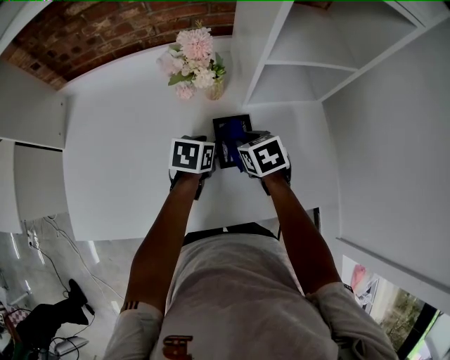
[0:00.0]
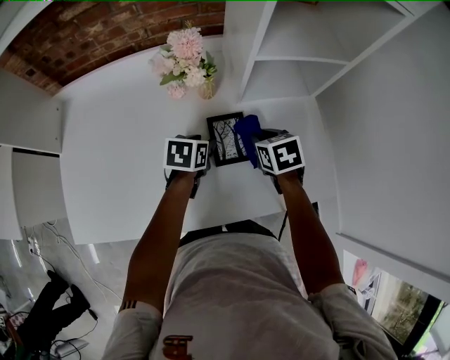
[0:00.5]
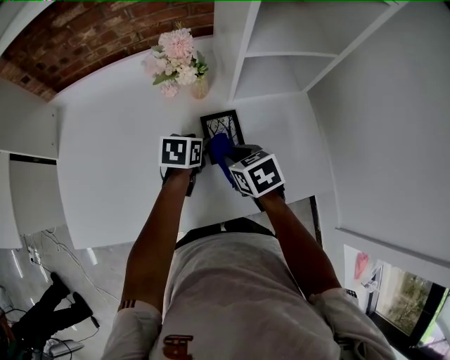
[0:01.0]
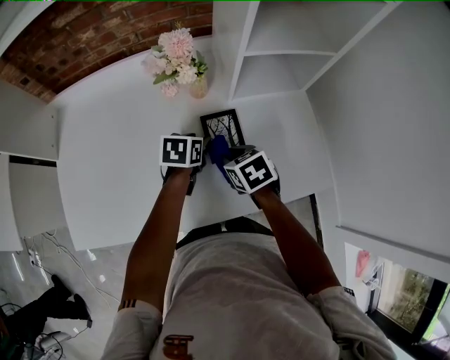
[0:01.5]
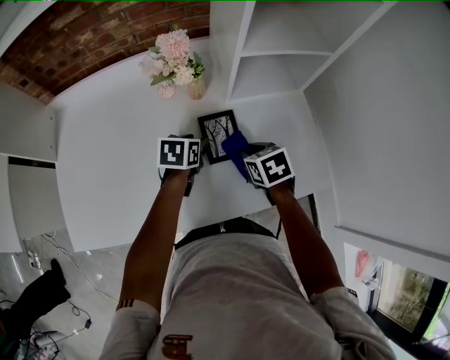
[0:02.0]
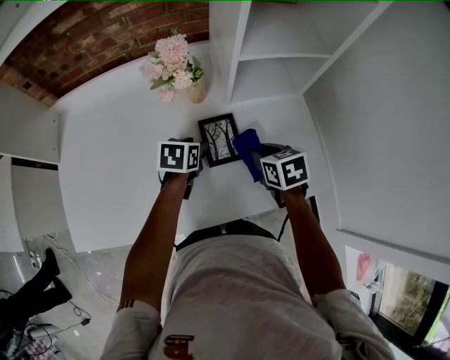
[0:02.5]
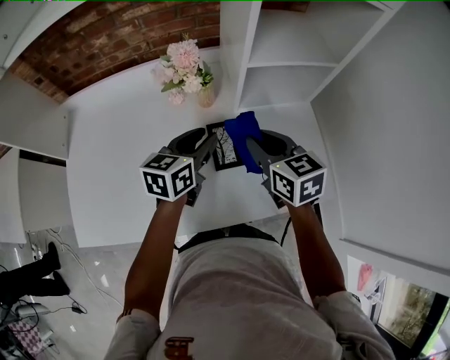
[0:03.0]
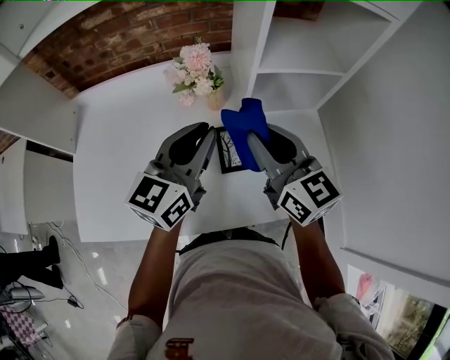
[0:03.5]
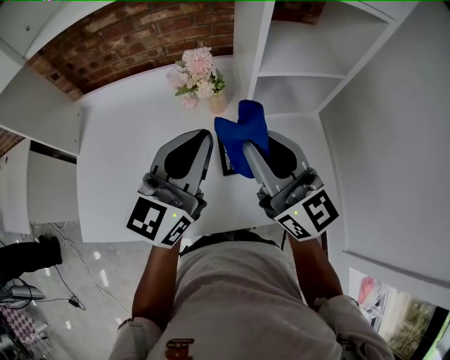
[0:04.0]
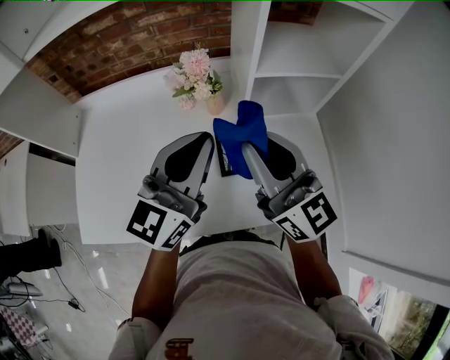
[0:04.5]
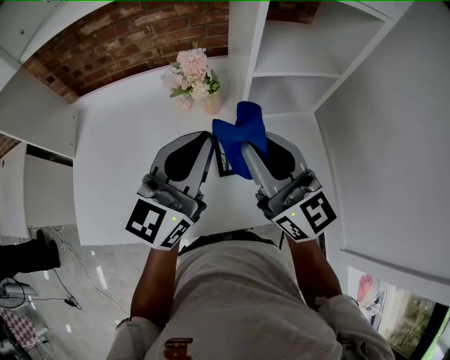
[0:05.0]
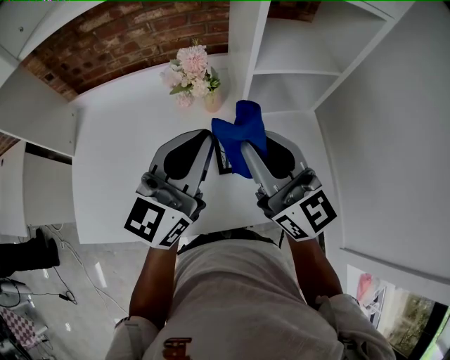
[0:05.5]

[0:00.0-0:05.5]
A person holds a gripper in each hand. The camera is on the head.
0:00.0 to 0:02.0: The right gripper goes left and right, some 5 cm each way, reversing 2 times.
0:02.0 to 0:03.5: The grippers both shift upward by about 25 cm. The left gripper angles its fingers upward, by about 50 degrees, and closes its fingers. The right gripper tips its fingers upward by roughly 50 degrees.
0:03.5 to 0:05.5: The right gripper changes place by approximately 5 cm; the left gripper shifts about 5 cm upward.

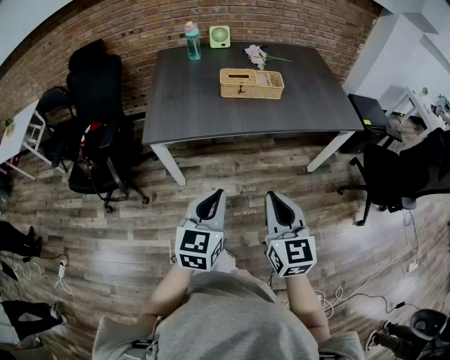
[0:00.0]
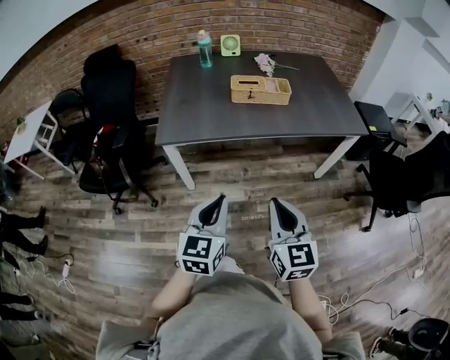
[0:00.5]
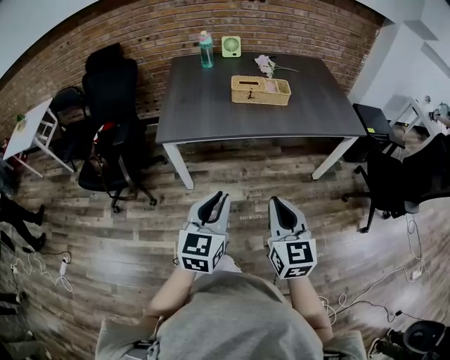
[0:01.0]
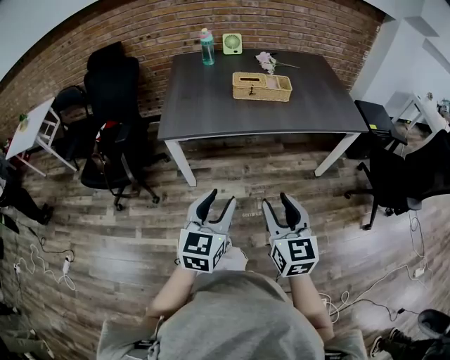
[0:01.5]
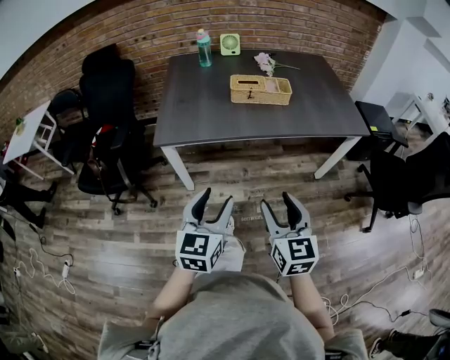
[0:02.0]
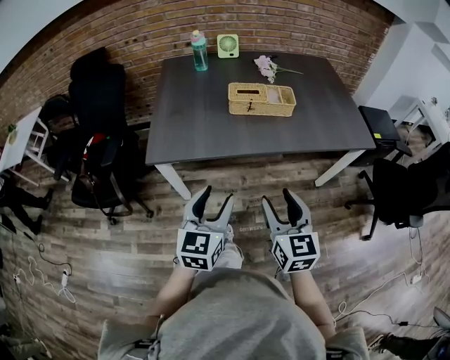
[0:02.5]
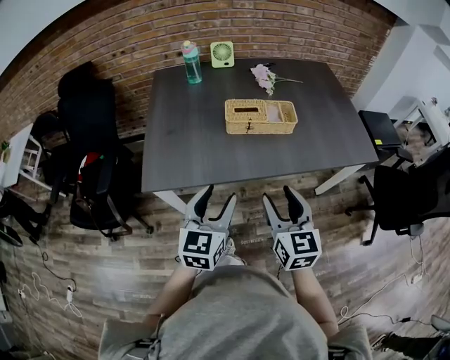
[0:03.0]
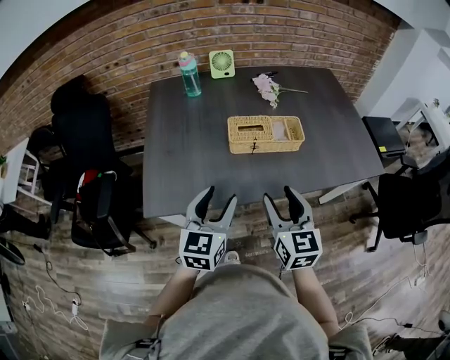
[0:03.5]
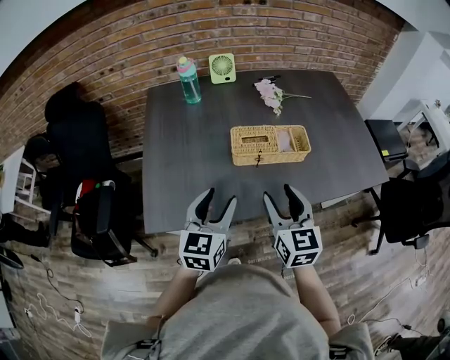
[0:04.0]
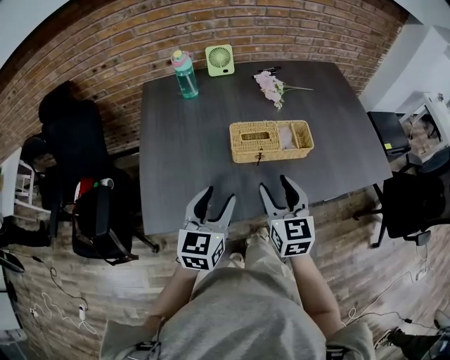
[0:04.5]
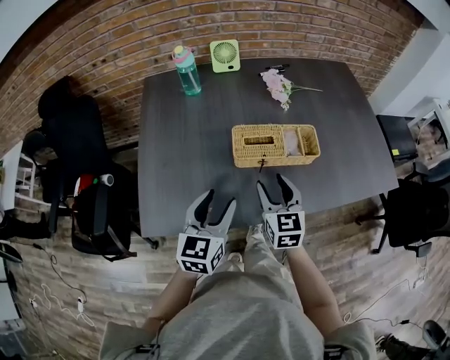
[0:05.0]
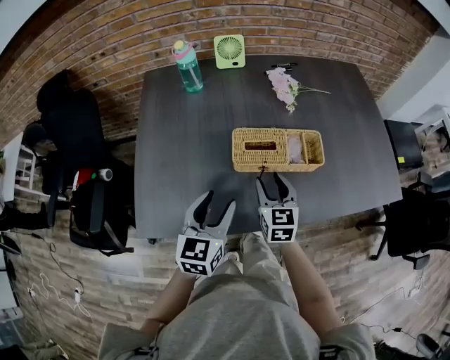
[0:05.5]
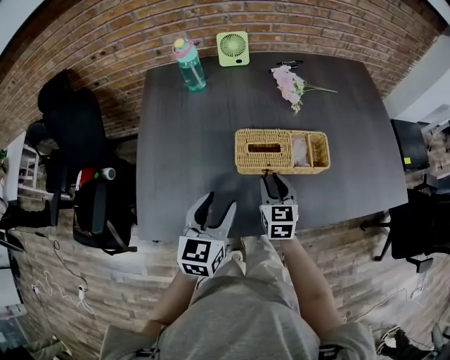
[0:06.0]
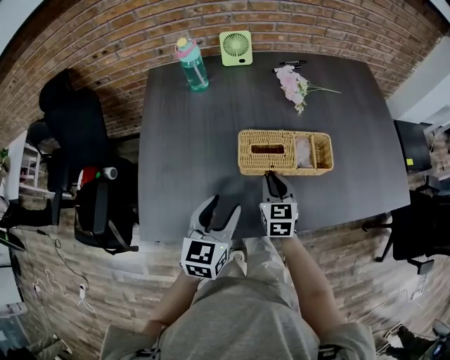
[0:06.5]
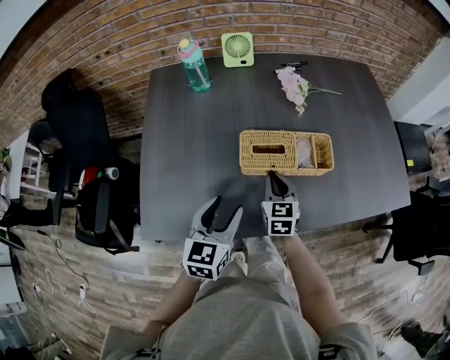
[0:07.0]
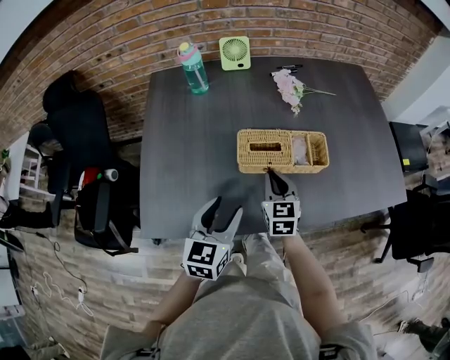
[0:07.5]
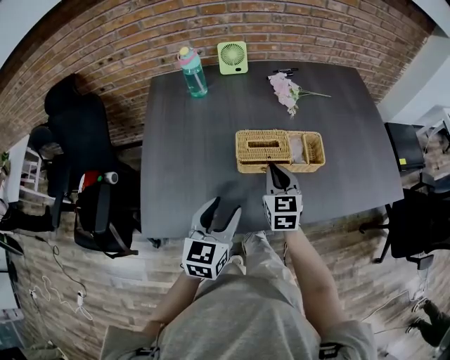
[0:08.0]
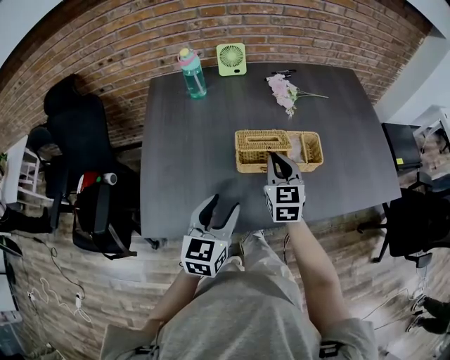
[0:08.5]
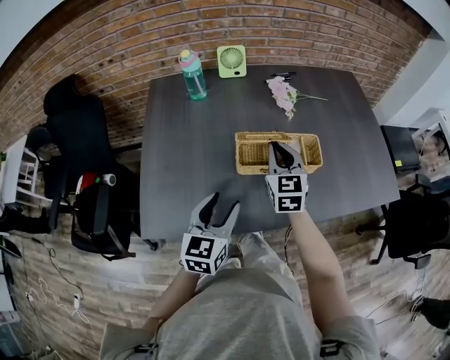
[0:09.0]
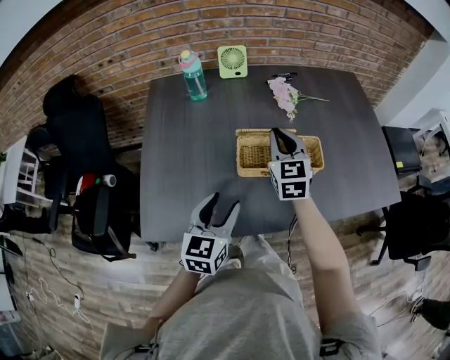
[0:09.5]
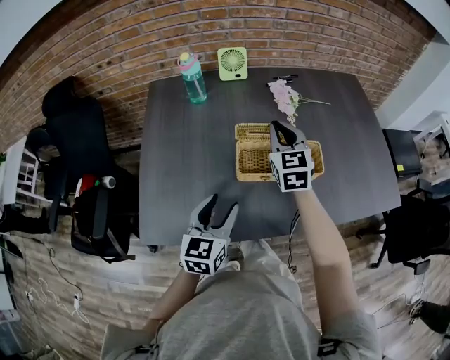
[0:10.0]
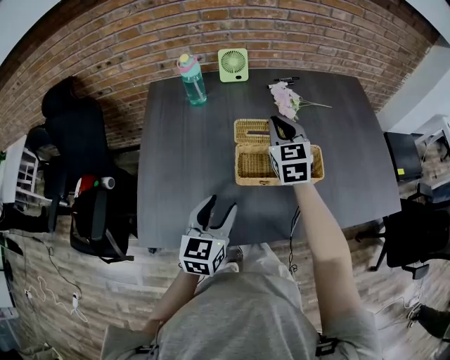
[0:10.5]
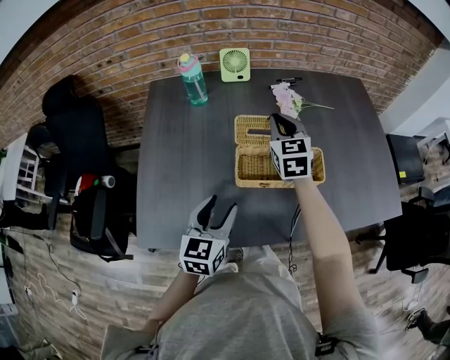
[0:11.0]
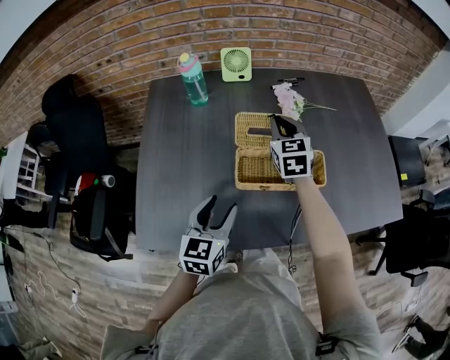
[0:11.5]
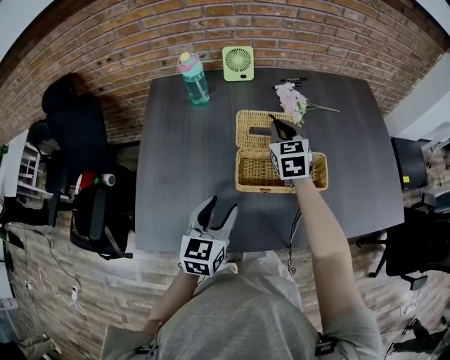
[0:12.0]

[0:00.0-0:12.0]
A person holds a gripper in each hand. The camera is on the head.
0:00.0 to 0:02.0: The left gripper opens. The right gripper opens.
0:02.0 to 0:04.0: Both grippers move forward, approximately 40 cm.
0:04.0 to 0:06.0: The right gripper shifts roughly 25 cm forward and downward, and closes; the left gripper shifts about 10 cm forward and downward.
0:06.0 to 0:08.0: The right gripper travels upward by approximately 5 cm, and closes its fingers.
0:08.0 to 0:10.0: The right gripper shifts about 15 cm forward and upward.
0:10.0 to 0:12.0: The right gripper is displaced forward and downward by about 10 cm.

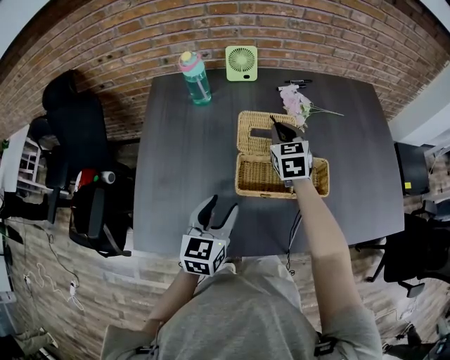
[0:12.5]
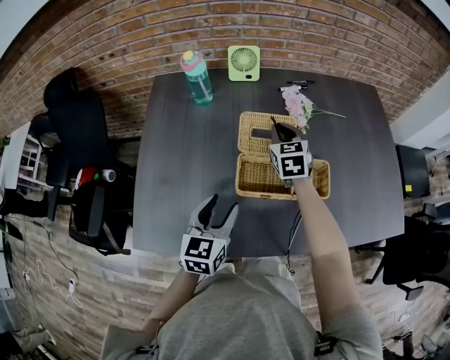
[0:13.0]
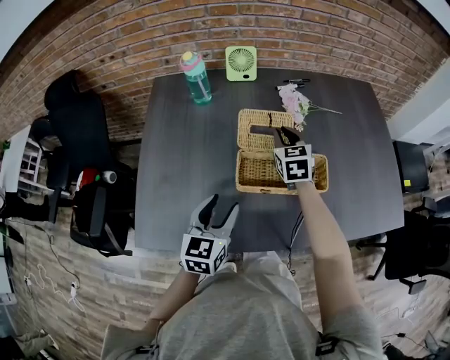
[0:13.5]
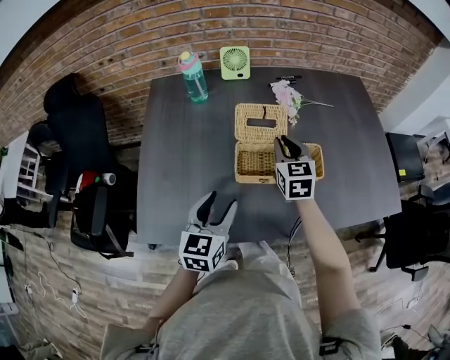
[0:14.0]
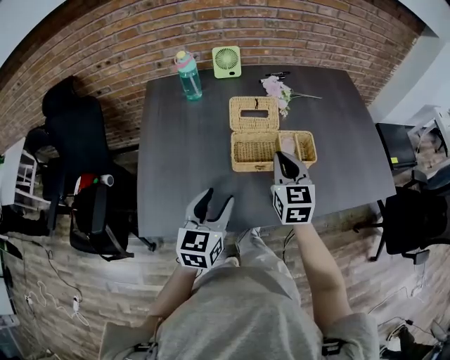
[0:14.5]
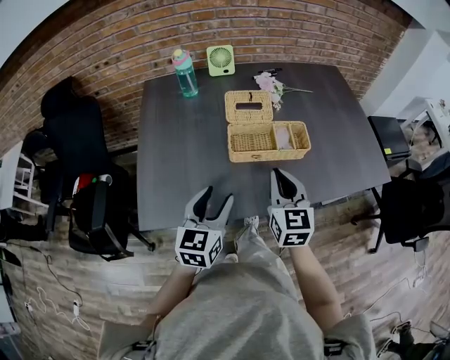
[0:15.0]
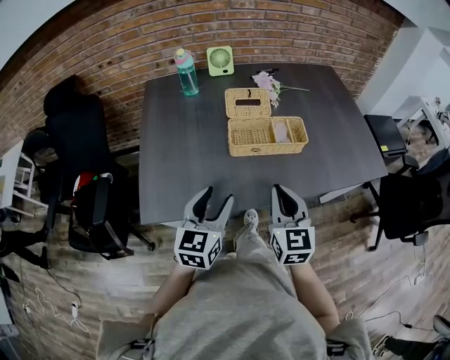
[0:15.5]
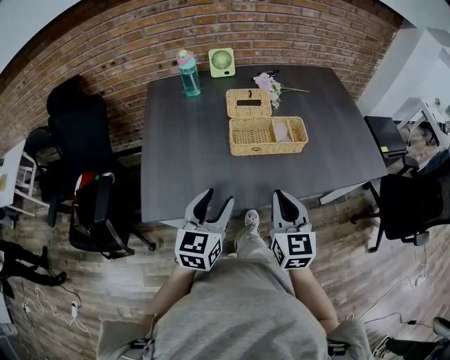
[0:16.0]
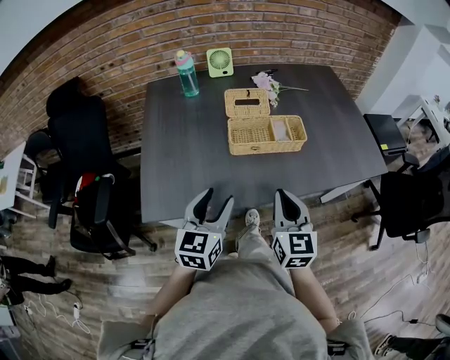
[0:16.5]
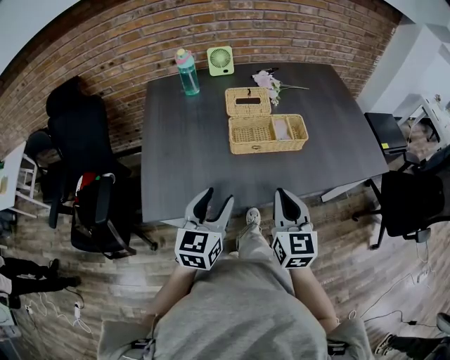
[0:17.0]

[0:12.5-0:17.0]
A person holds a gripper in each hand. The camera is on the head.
0:12.5 to 0:14.5: The left gripper shifts roughly 10 cm backward; the right gripper heads backward, covering approximately 20 cm.
0:14.5 to 0:17.0: The right gripper goes about 20 cm backward. Meanwhile the left gripper goes approximately 10 cm backward.

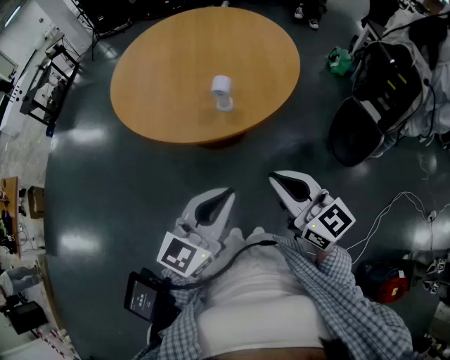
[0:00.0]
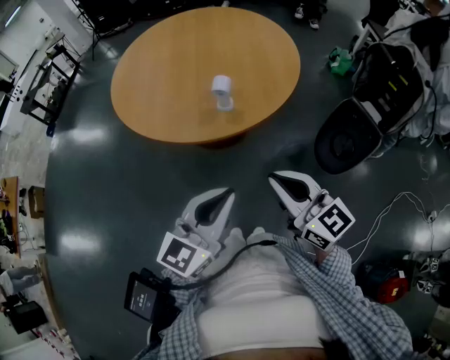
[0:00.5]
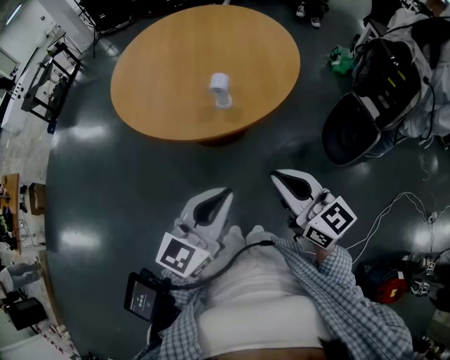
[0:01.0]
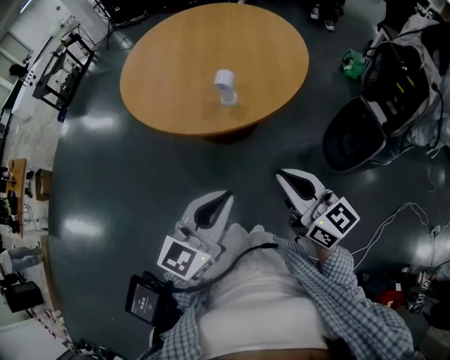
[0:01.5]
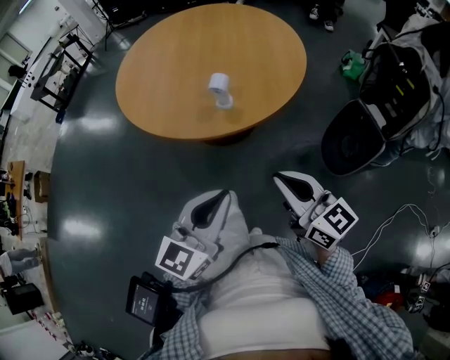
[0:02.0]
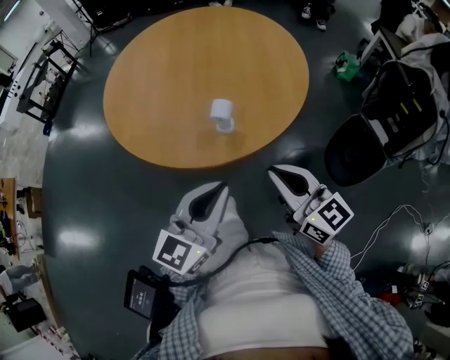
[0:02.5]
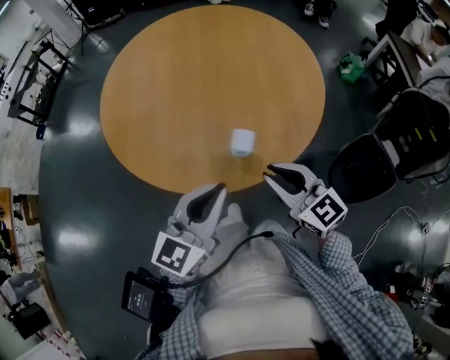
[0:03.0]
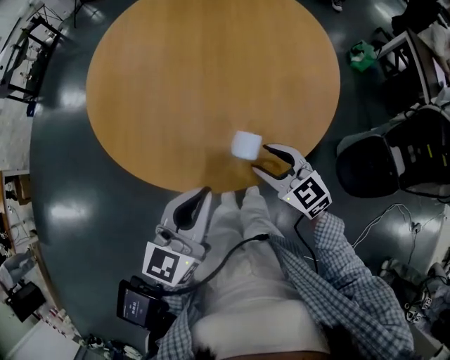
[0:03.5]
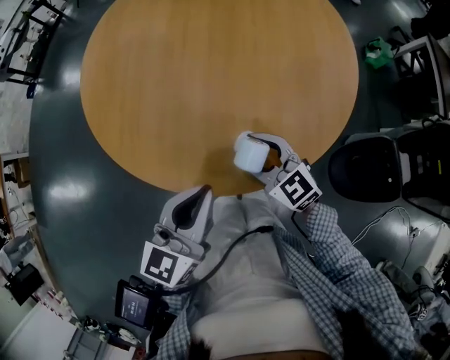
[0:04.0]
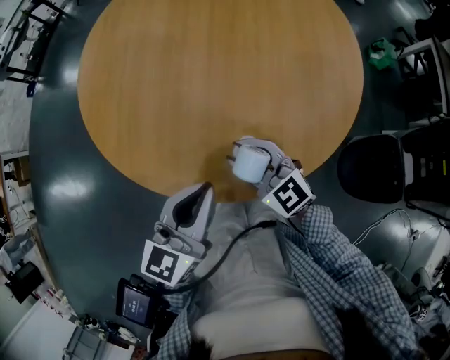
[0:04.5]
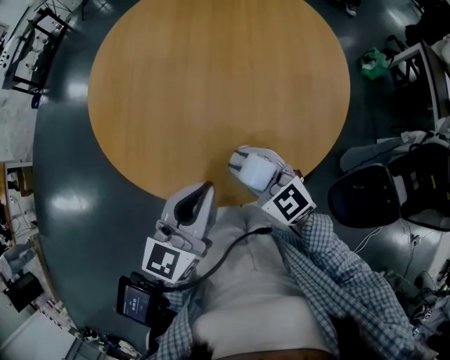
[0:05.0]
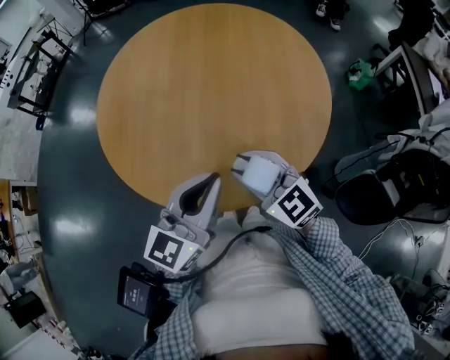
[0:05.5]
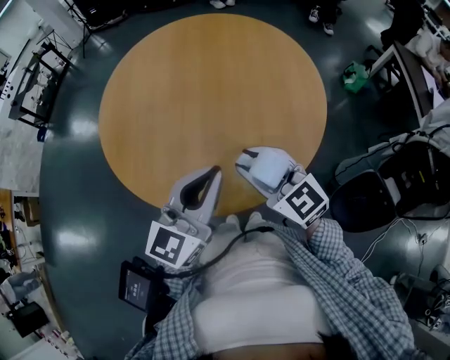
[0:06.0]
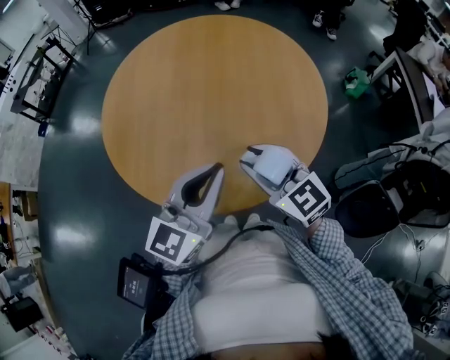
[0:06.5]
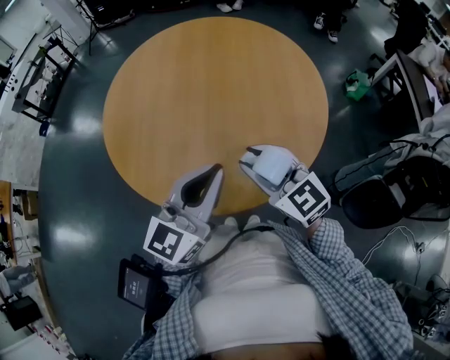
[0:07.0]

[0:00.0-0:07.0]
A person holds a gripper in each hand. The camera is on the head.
0:00.0 to 0:02.0: The right gripper shifts by approximately 5 cm.
0:02.0 to 0:03.5: The right gripper heads forward and downward, covering some 35 cm, rotates about 30 degrees, and opens. Meanwhile the left gripper travels forward by approximately 30 cm.
0:03.5 to 0:05.0: The right gripper moves to the left, some 5 cm.
0:05.0 to 0:07.0: The two grippers go approximately 10 cm upward.
